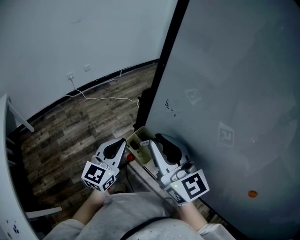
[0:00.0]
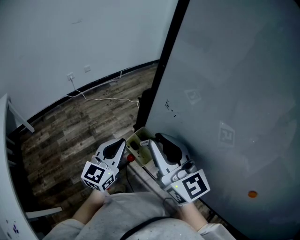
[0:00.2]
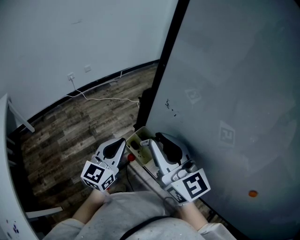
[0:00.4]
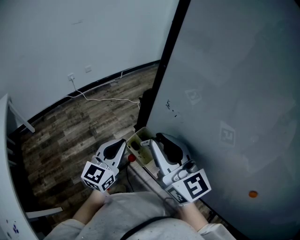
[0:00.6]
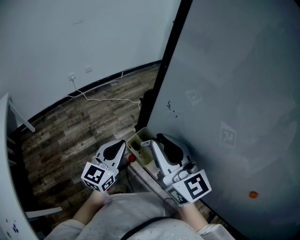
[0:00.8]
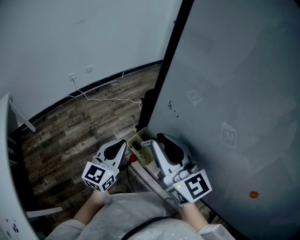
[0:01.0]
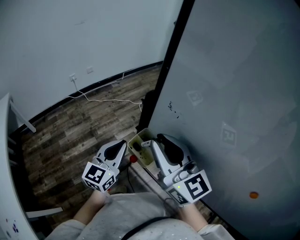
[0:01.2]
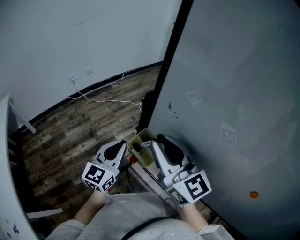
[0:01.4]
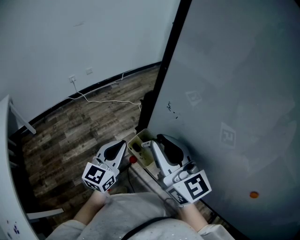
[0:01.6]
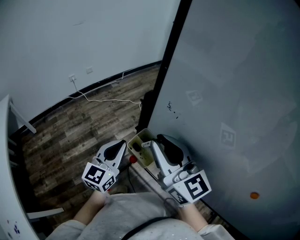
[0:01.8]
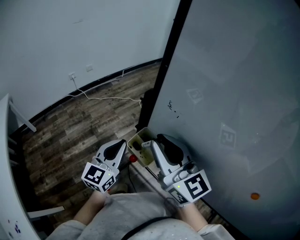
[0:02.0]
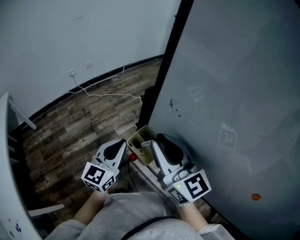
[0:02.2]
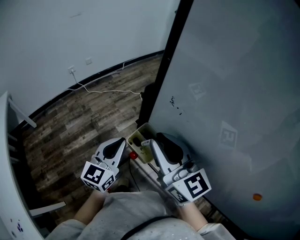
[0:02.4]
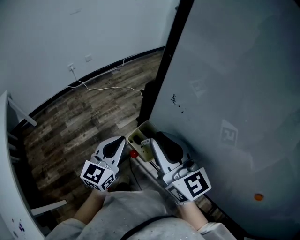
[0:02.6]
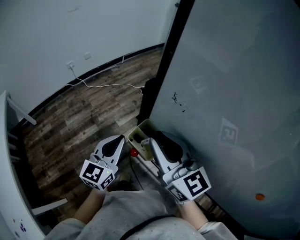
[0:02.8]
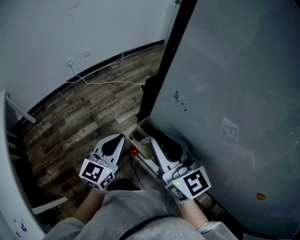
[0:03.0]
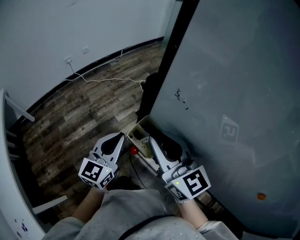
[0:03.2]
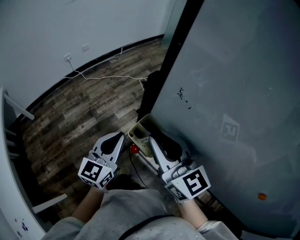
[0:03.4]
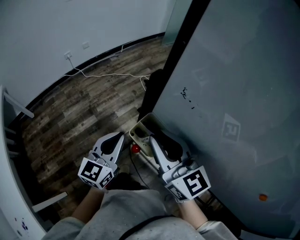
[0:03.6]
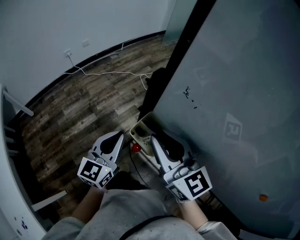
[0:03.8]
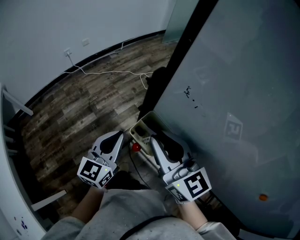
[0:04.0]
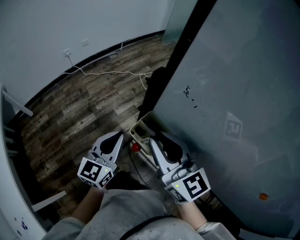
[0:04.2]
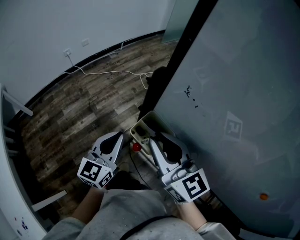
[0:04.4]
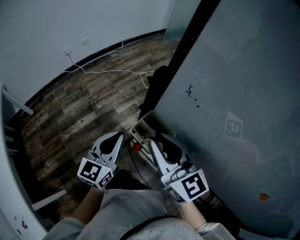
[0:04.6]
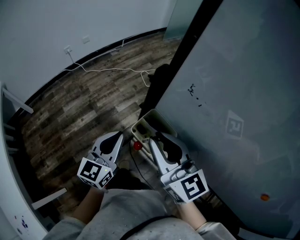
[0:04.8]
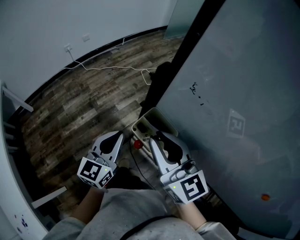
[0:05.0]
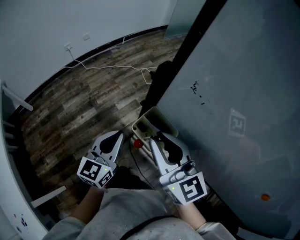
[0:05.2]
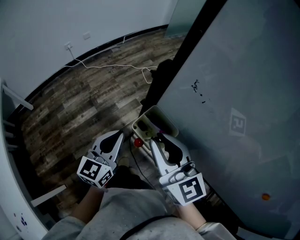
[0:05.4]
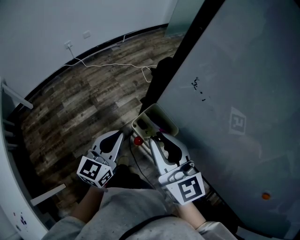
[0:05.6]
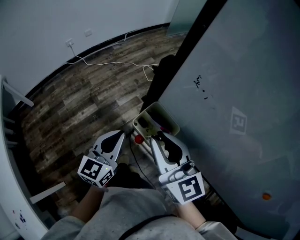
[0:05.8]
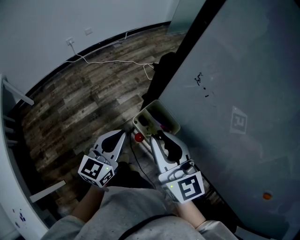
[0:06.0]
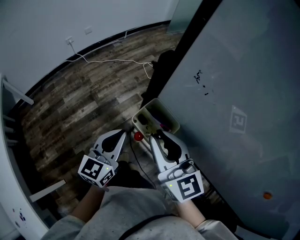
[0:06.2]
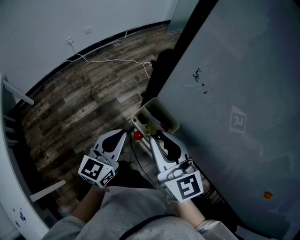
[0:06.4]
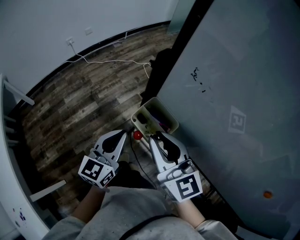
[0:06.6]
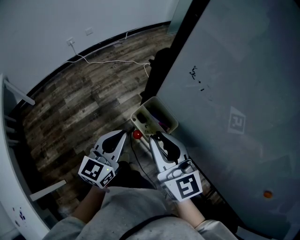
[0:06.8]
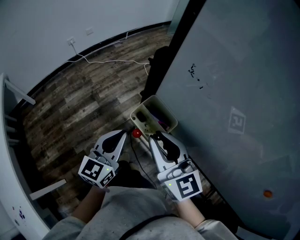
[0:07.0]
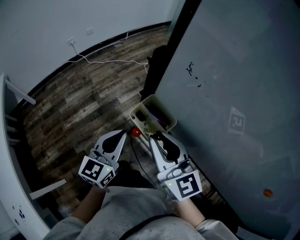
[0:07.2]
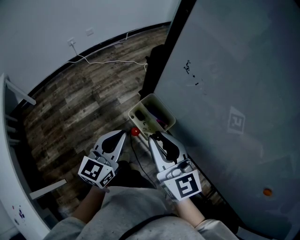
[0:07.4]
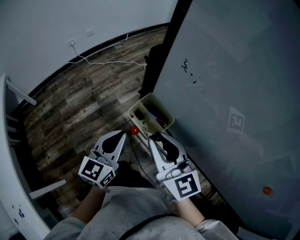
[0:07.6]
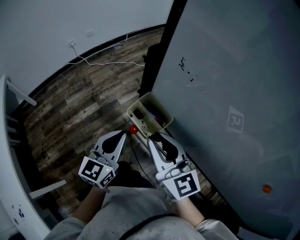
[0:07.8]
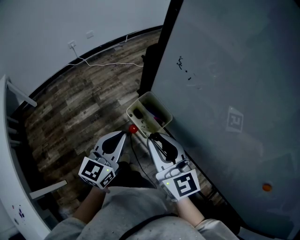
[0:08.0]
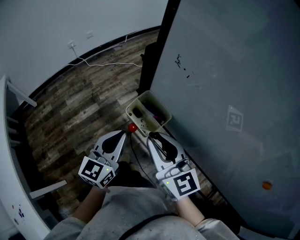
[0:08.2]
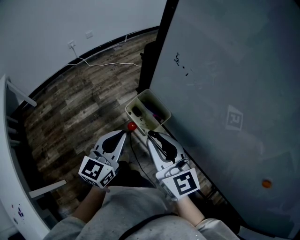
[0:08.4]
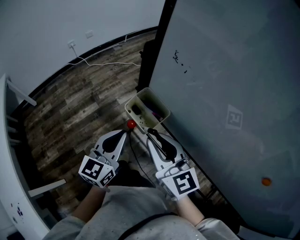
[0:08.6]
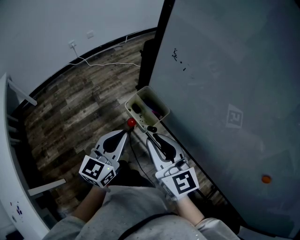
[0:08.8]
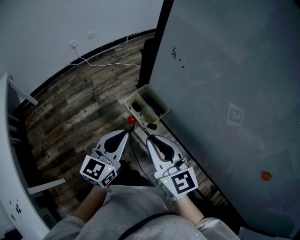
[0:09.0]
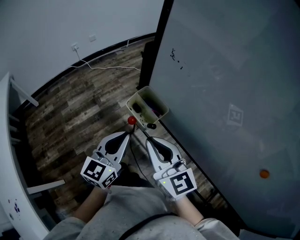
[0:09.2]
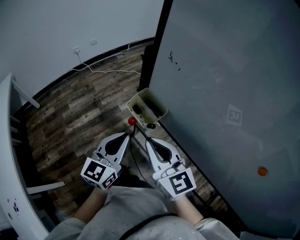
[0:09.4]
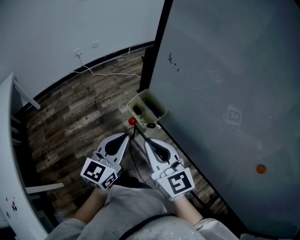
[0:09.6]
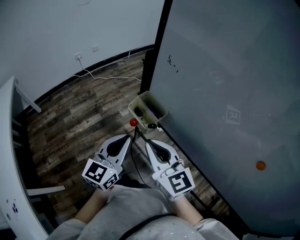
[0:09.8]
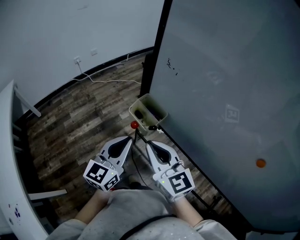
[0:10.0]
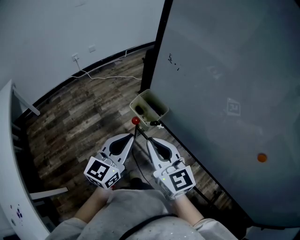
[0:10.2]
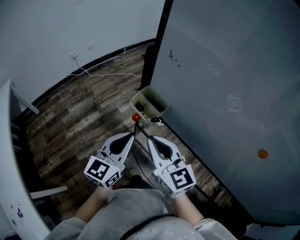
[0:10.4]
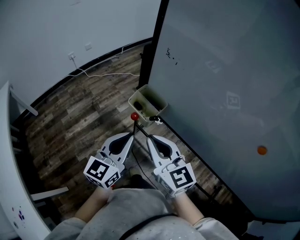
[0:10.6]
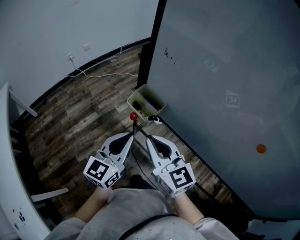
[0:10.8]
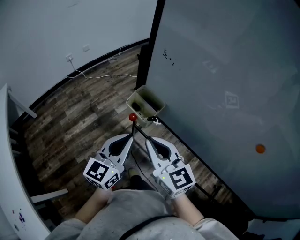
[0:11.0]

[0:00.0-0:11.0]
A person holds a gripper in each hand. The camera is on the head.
0.0 to 1.6 s: Neither gripper changes place.
1.6 to 3.2 s: The right gripper is displaced downward by roughly 5 cm.
3.2 to 6.2 s: The grippers stay close to where they were, moving slightly.
6.2 to 7.8 s: The grippers stay close to where they were, moving slightly.
7.8 to 9.4 s: The grippers both shift backward by roughly 5 cm.
9.4 to 11.0 s: The grippers move only a little.

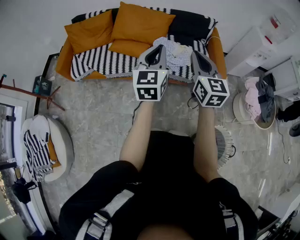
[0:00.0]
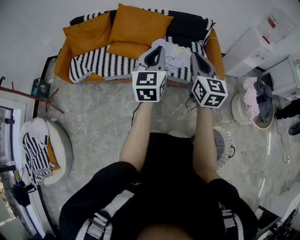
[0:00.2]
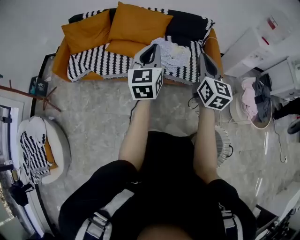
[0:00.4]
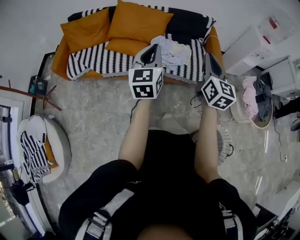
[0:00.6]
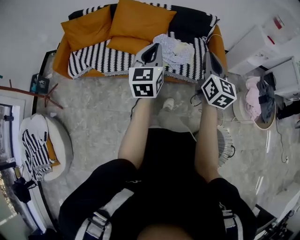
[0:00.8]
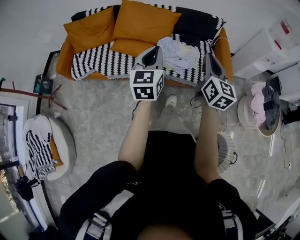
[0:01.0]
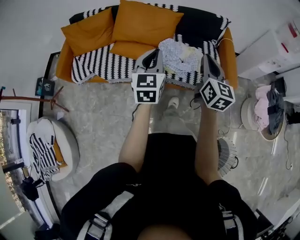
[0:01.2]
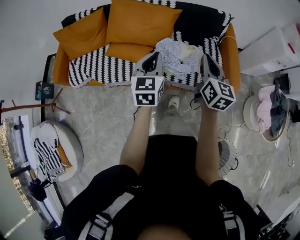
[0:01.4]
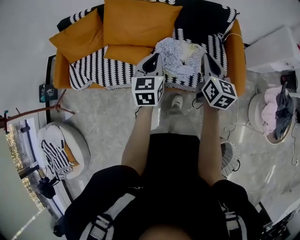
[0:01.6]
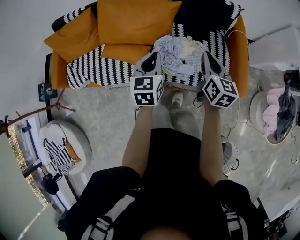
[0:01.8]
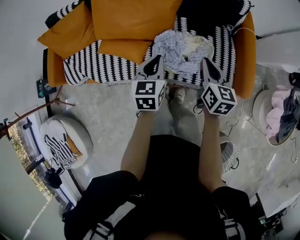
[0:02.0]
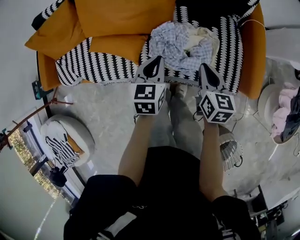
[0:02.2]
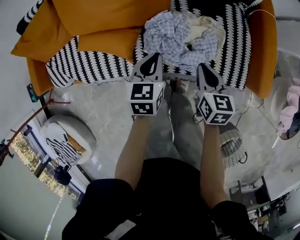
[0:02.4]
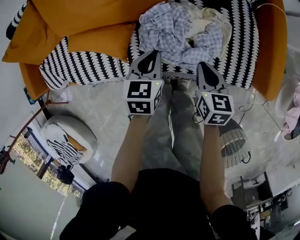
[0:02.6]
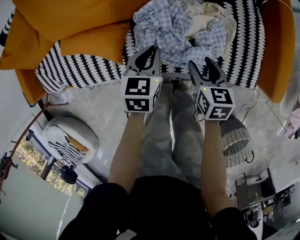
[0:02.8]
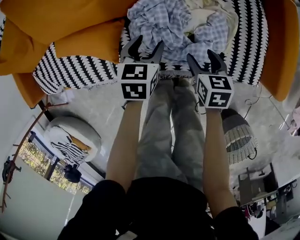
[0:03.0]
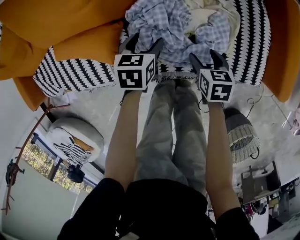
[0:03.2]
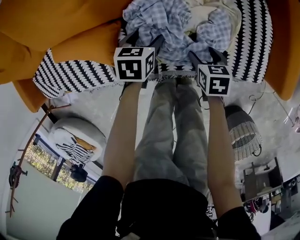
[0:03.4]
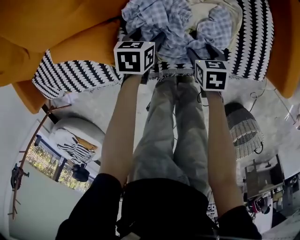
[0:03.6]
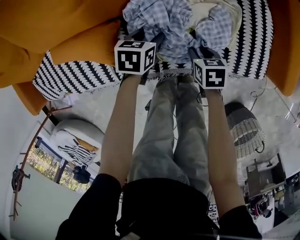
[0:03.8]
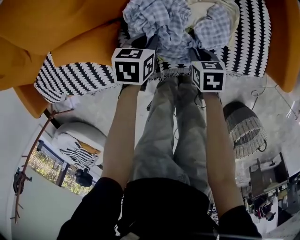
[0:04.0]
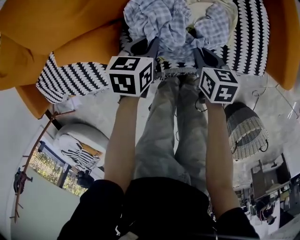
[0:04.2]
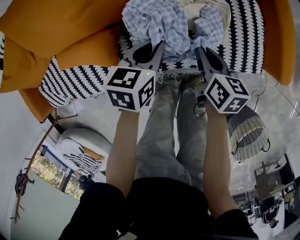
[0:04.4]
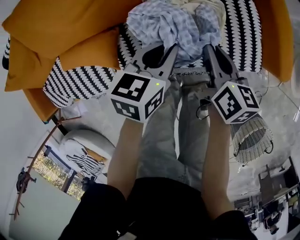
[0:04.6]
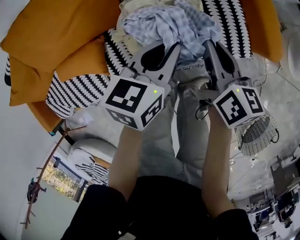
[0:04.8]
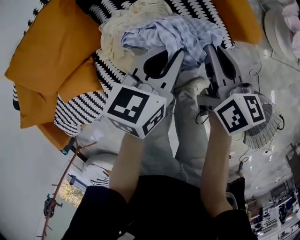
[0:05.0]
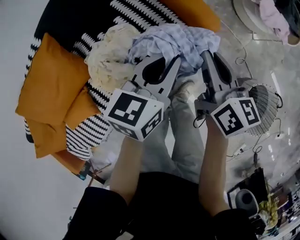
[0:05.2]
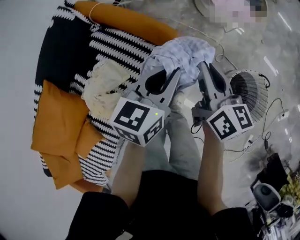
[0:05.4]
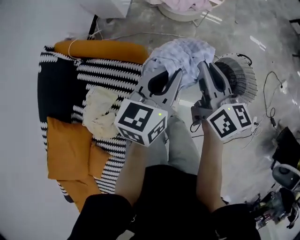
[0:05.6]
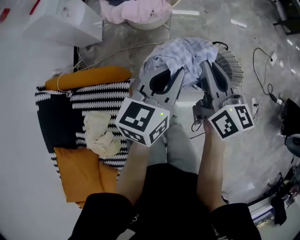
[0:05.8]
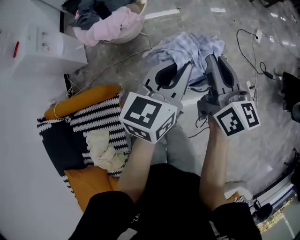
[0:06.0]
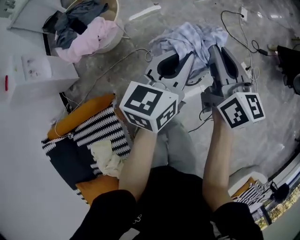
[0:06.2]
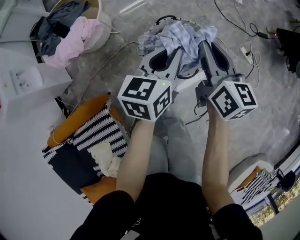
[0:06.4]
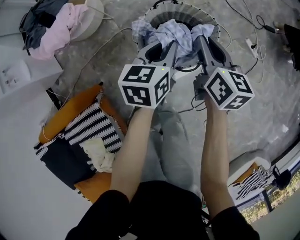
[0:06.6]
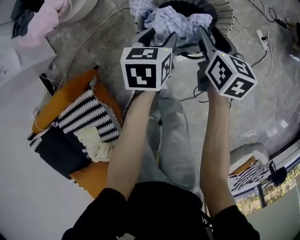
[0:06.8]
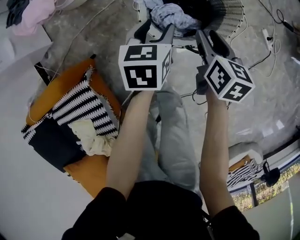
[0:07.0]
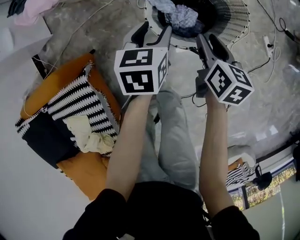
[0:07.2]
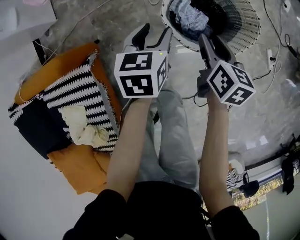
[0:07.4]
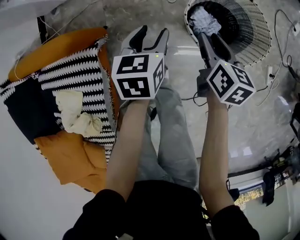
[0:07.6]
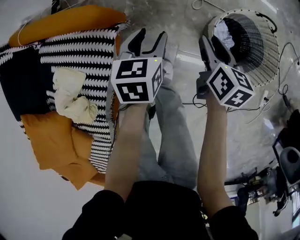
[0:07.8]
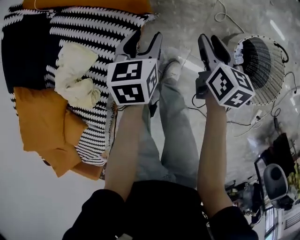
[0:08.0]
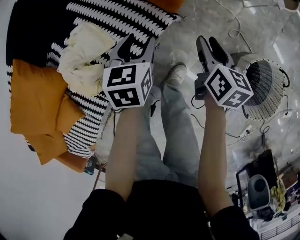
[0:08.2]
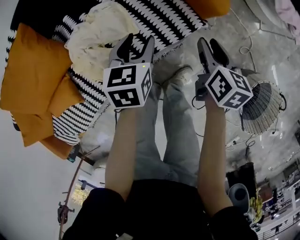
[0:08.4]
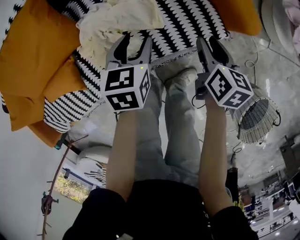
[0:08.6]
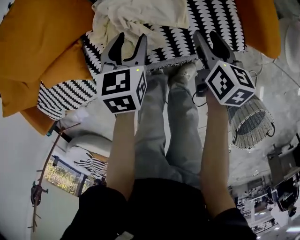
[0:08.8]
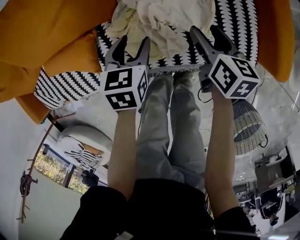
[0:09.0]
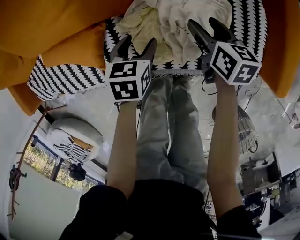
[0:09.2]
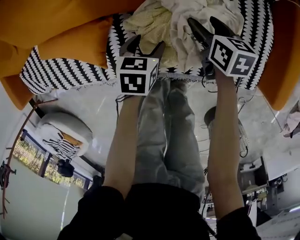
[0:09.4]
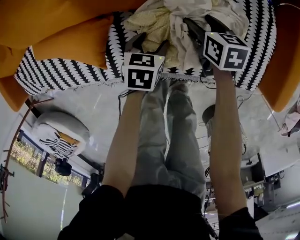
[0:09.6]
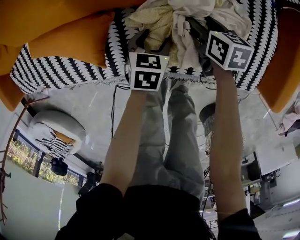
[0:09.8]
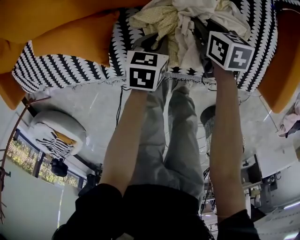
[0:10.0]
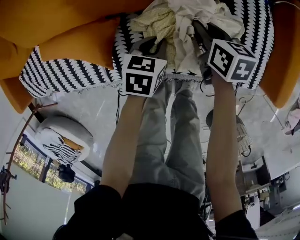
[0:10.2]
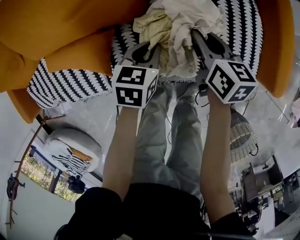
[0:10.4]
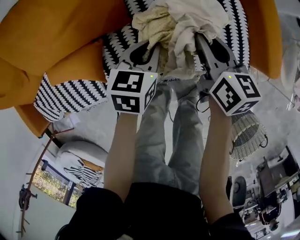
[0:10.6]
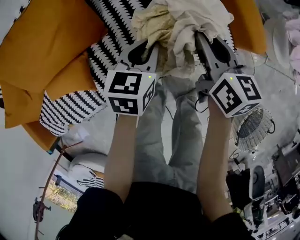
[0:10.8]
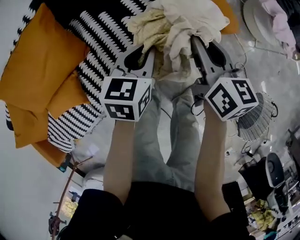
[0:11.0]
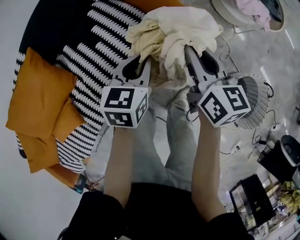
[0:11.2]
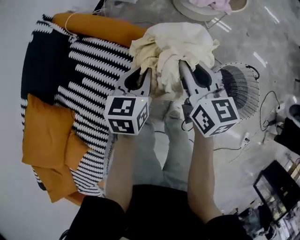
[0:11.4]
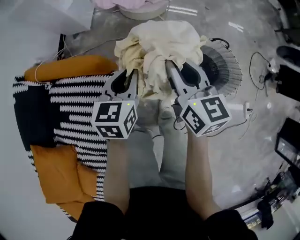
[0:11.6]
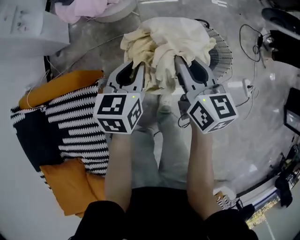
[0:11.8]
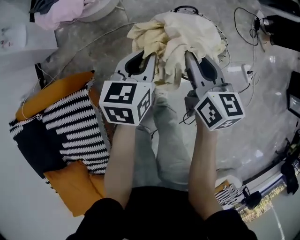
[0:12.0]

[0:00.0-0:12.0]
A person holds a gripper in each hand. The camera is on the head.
0.0 to 1.6 s: The grippers both shift forward and downward by roughly 35 cm. The left gripper swivels about 20 degrees. Meanwhile the right gripper changes its angle by about 20 degrees.
1.6 to 3.0 s: The two grippers go roughly 50 cm downward. The left gripper rotates approximately 30 degrees, and opens, while the right gripper angles its fingers downward, by about 40 degrees, and opens up.
3.0 to 4.4 s: The grippers both shift upward by about 5 cm. The left gripper closes its fingers. The right gripper rotates some 30 degrees, and closes.
4.4 to 6.0 s: The pair of grippers is taken some 80 cm. The left gripper tips its fingers upward by about 30 degrees. The right gripper tilts its fingers roughly 40 degrees upward.
6.0 to 7.6 s: Both grippers travel together downward, about 40 cm. The left gripper tips its fingers downward by approximately 40 degrees, and opens up. Meanwhile the right gripper tilts its fingers some 40 degrees downward, and opens.
7.6 to 9.0 s: The pair of grippers is taken roughly 70 cm. The left gripper swivels about 80 degrees; the right gripper swivels some 90 degrees.
9.0 to 10.4 s: The right gripper heads to the left, covering roughly 10 cm, moves roughly 15 cm downward and comes back, and closes its fingers; the left gripper moves roughly 15 cm downward and comes back, and closes.
10.4 to 12.0 s: Both grippers are carried approximately 80 cm. The left gripper changes its angle by about 90 degrees; the right gripper swivels roughly 100 degrees.

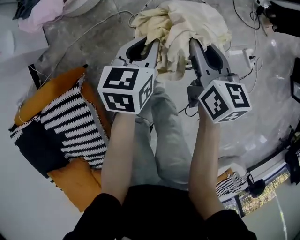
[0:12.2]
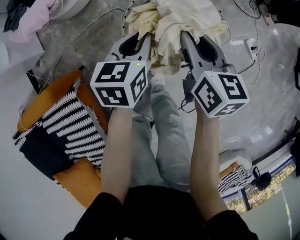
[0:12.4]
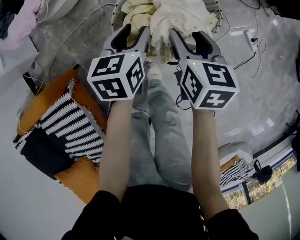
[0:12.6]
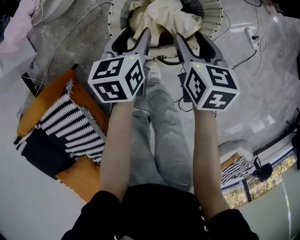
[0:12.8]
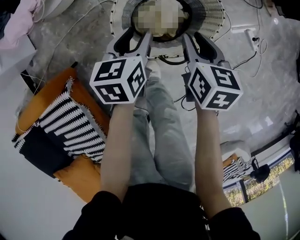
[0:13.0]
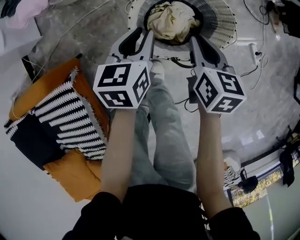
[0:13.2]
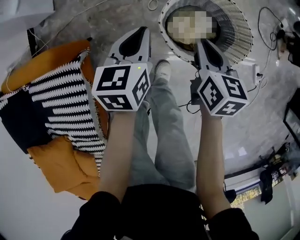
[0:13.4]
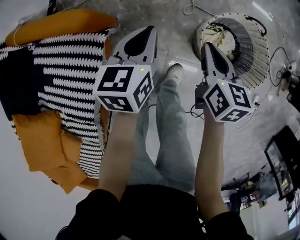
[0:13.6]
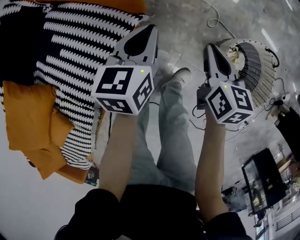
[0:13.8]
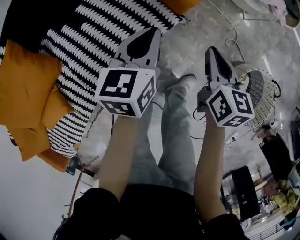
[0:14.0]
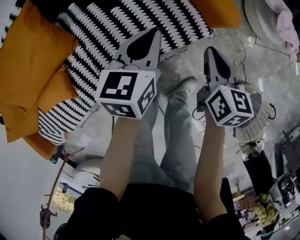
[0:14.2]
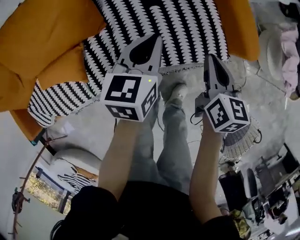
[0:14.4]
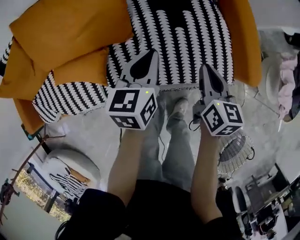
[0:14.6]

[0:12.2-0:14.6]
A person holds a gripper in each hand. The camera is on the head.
12.2 to 13.4 s: The left gripper is displaced to the left and downward by some 10 cm, turns by roughly 20 degrees, and opens and closes again. The right gripper moves downward and to the left, some 15 cm, and opens, then closes again.
13.4 to 14.6 s: The pair of grippers is taken roughly 70 cm. The right gripper changes its angle by roughly 80 degrees. Meanwhile the left gripper rotates about 80 degrees.
